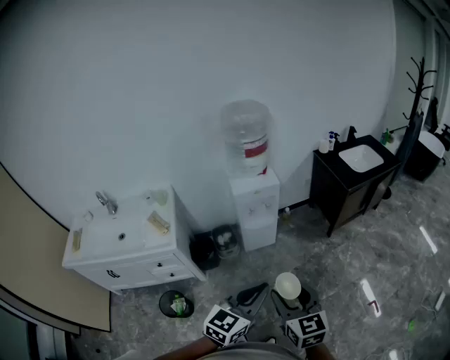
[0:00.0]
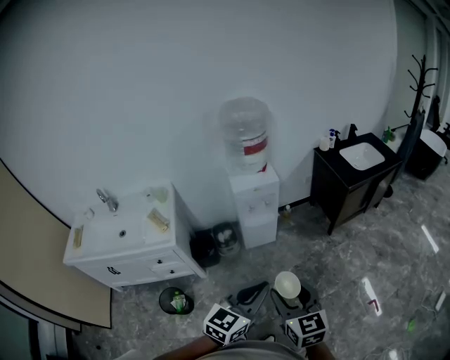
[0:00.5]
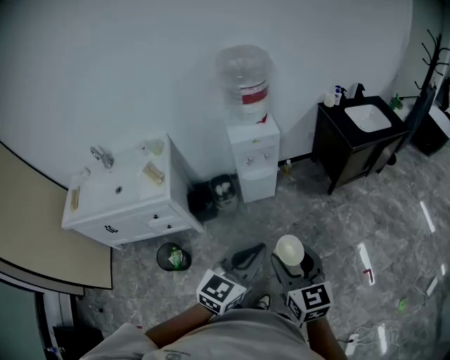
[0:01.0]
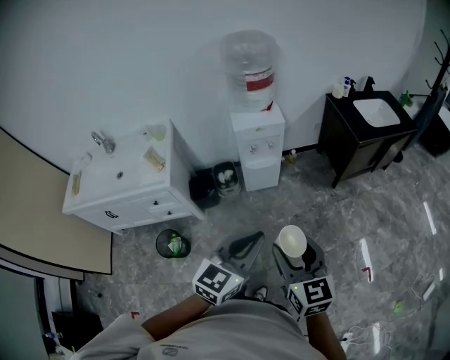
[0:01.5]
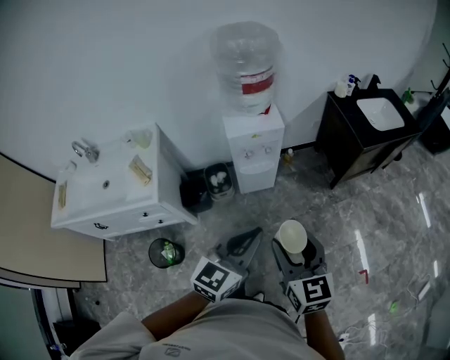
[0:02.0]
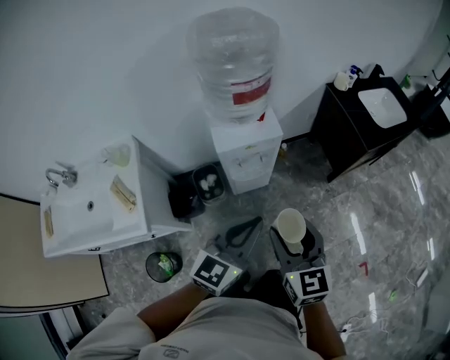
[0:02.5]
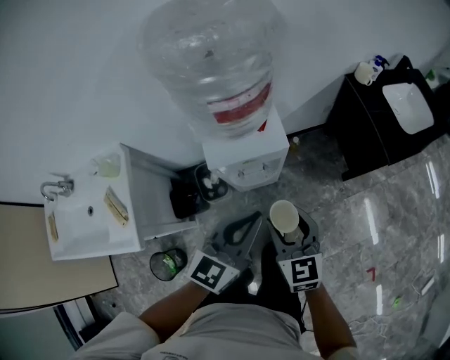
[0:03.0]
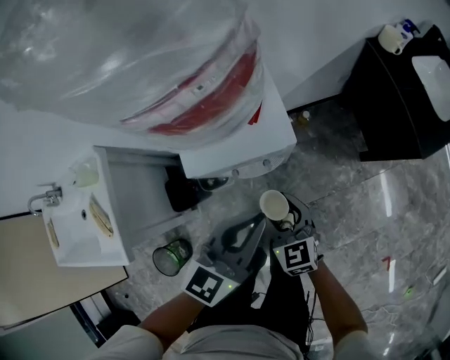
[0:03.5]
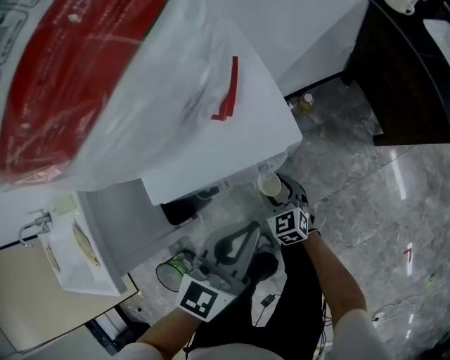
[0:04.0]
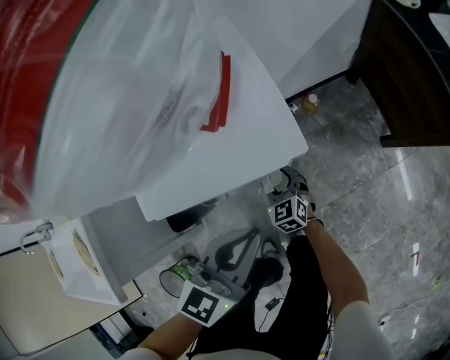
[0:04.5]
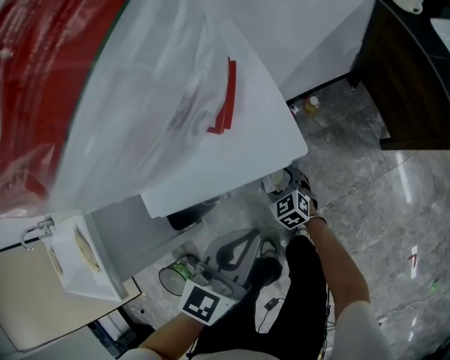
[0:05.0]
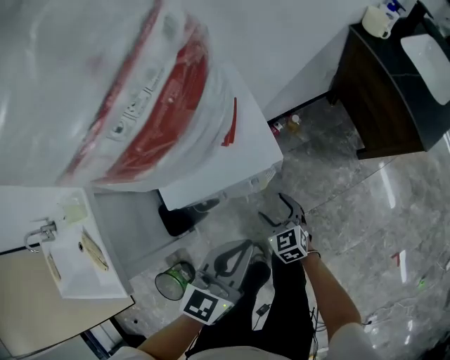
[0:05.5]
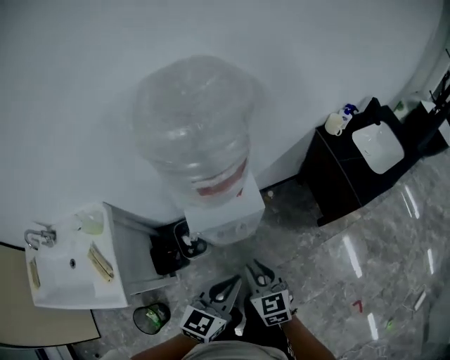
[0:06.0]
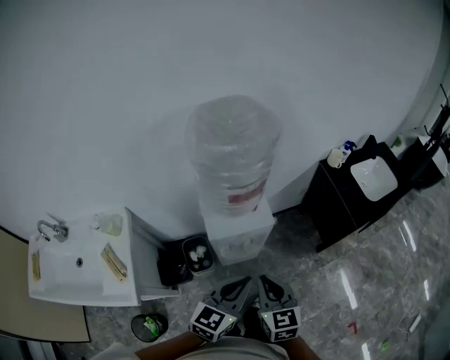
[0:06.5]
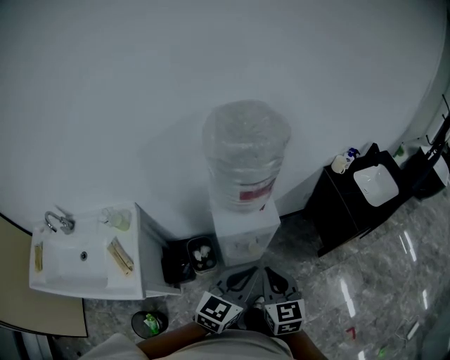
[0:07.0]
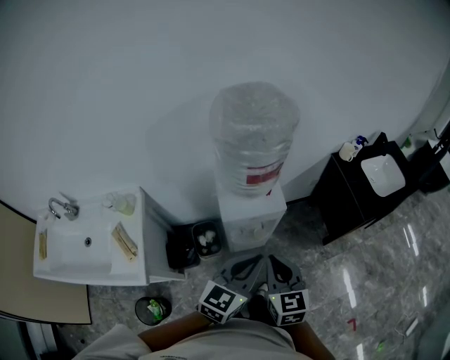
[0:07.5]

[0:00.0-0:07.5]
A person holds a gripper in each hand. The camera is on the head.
0:00.0 to 0:02.0: The two grippers go some 15 cm forward.
0:02.0 to 0:04.0: Both grippers are carried forward, approximately 50 cm. The left gripper goes roughly 30 cm downward; the right gripper moves downward, approximately 60 cm, and swivels roughly 20 degrees.
0:04.0 to 0:05.5: The right gripper travels upward by about 10 cm.
0:05.5 to 0:07.5: The left gripper travels upward by some 30 cm. Meanwhile the right gripper heads upward, covering roughly 50 cm, and closes.

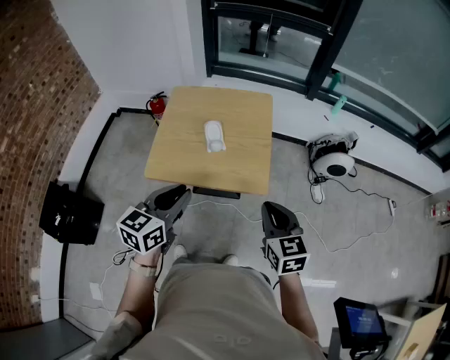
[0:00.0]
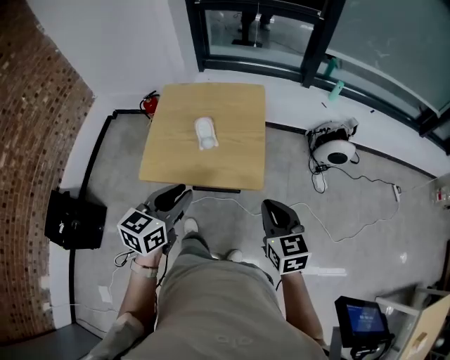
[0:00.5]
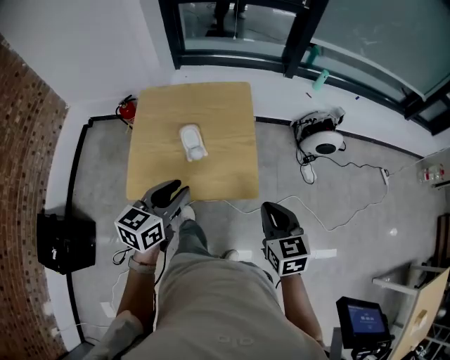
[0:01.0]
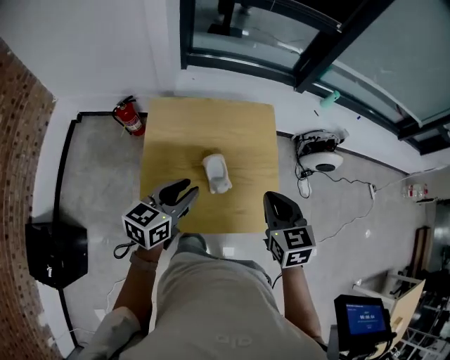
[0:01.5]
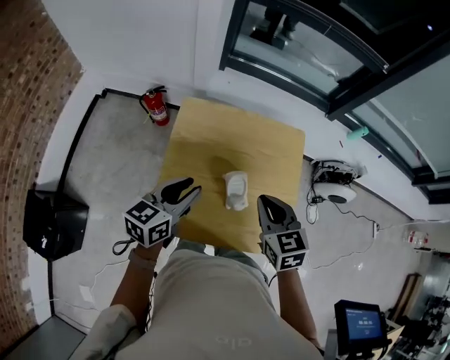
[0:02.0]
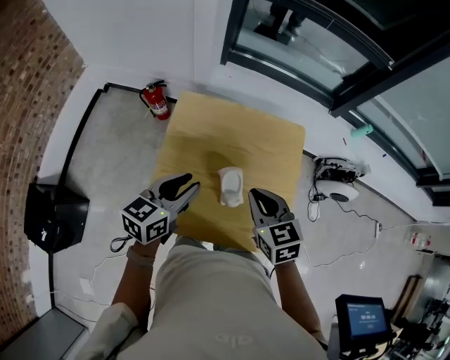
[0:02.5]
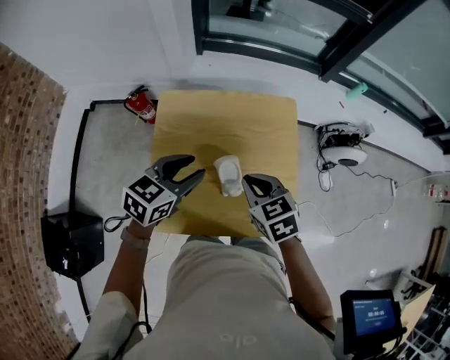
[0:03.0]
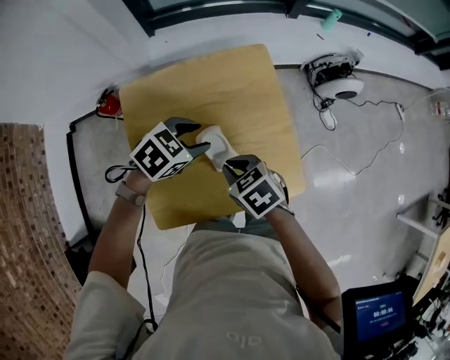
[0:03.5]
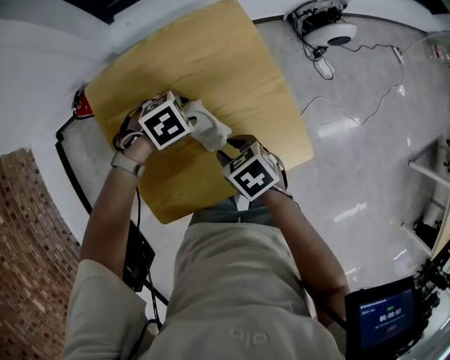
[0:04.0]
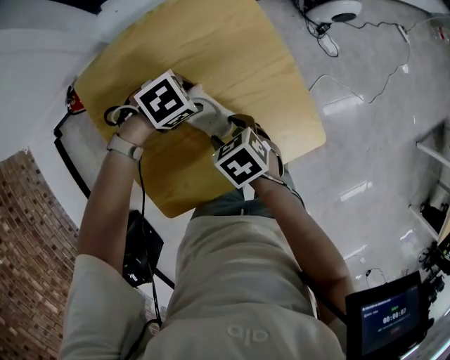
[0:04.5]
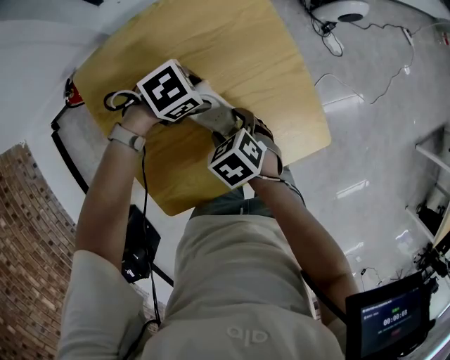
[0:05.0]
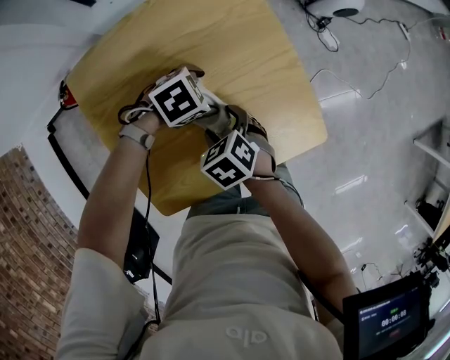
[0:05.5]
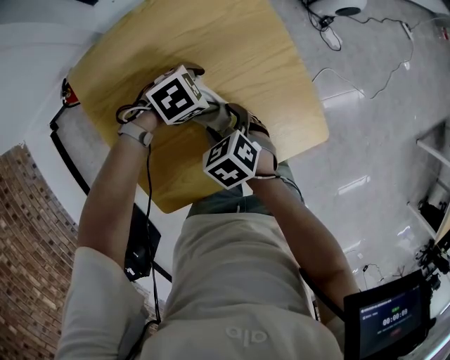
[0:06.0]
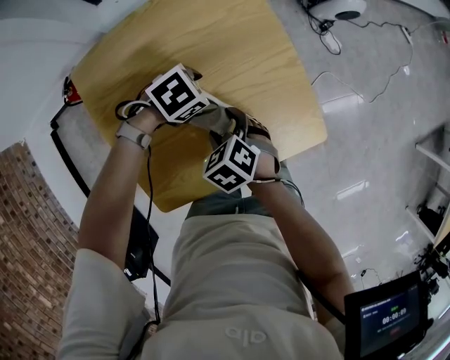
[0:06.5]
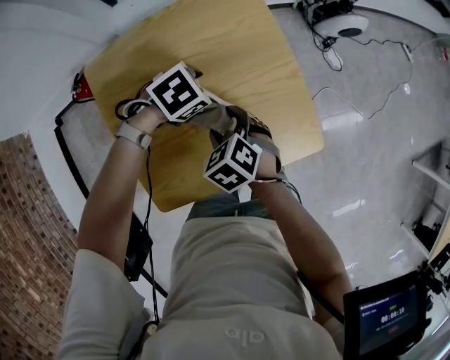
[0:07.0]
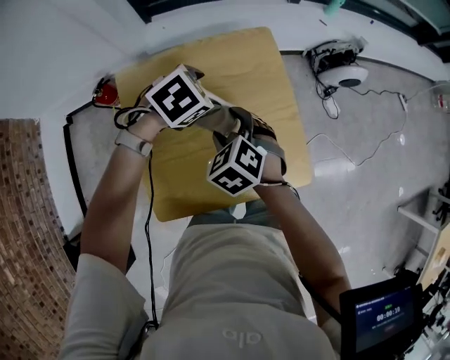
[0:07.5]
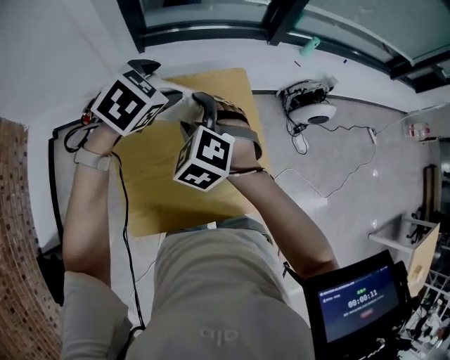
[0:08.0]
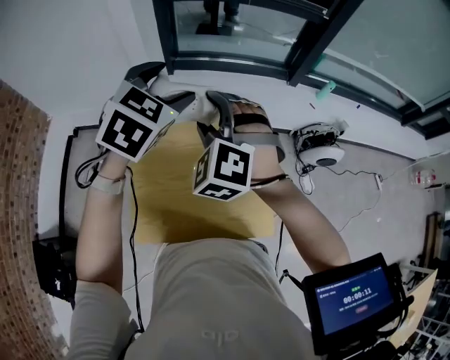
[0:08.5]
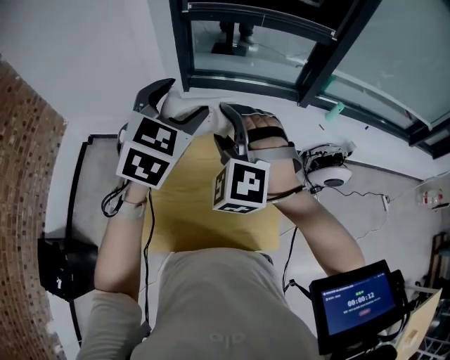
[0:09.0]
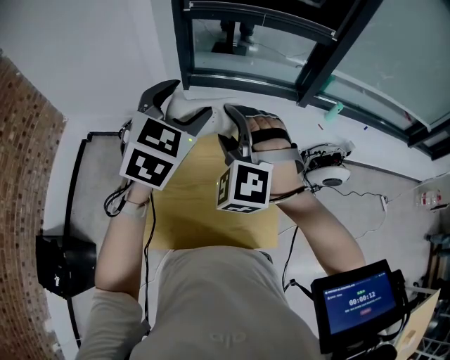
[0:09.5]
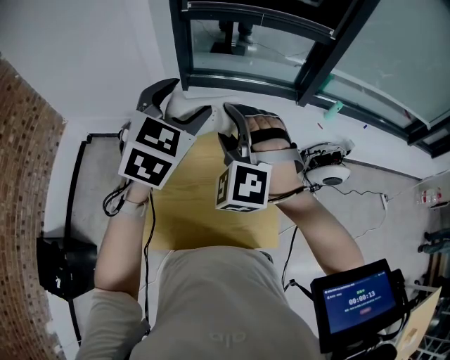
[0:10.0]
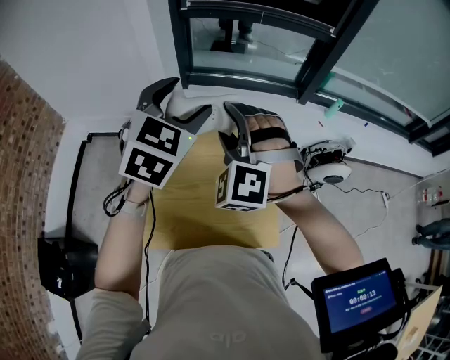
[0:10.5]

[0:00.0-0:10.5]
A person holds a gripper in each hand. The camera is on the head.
0:00.0 to 0:02.0: The two grippers go roughly 40 cm forward and to the left.
0:02.0 to 0:04.0: Both grippers travel together downward, approximately 20 cm. The right gripper rotates some 40 degrees, while the left gripper tilts its fingers some 50 degrees downward.
0:04.0 to 0:06.5: The grippers both shift downward by approximately 5 cm. The right gripper swivels approximately 20 degrees, and opens up.
0:06.5 to 0:08.5: The two grippers go about 40 cm upward. The left gripper tilts its fingers approximately 30 degrees upward. The right gripper rolls counterclockwise, seen from behind, by some 50 degrees.
0:08.5 to 0:10.5: The left gripper shifts by about 5 cm, while the right gripper ends up some 5 cm from where it was.

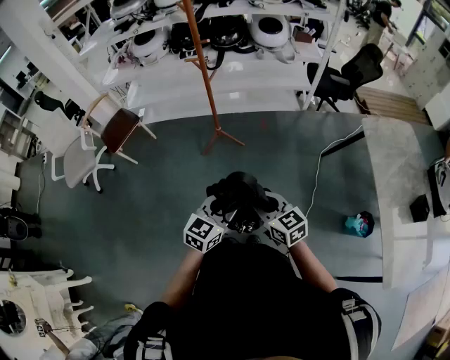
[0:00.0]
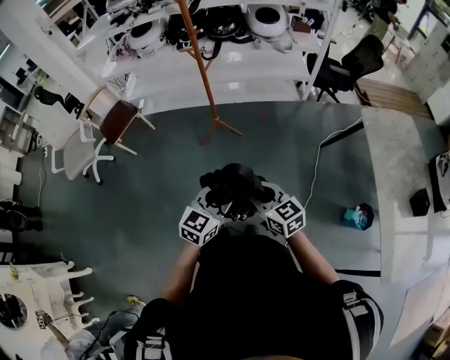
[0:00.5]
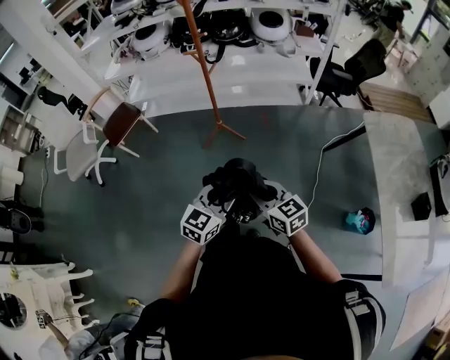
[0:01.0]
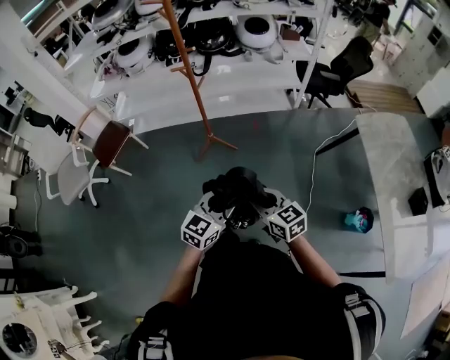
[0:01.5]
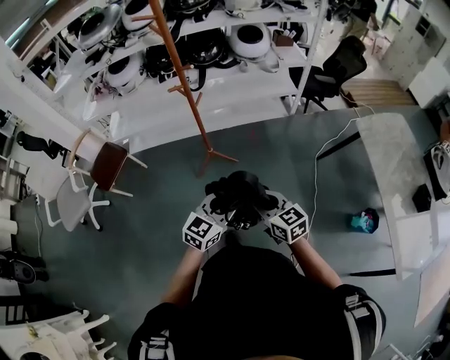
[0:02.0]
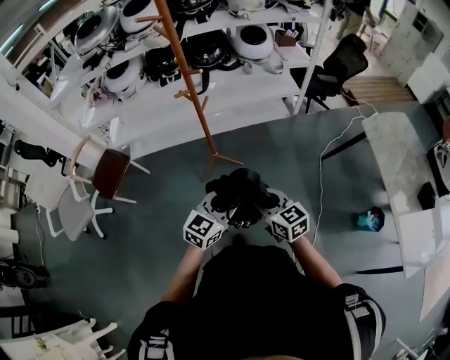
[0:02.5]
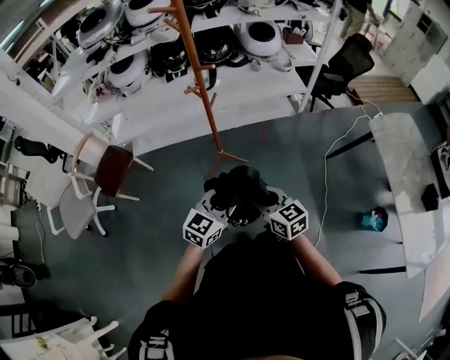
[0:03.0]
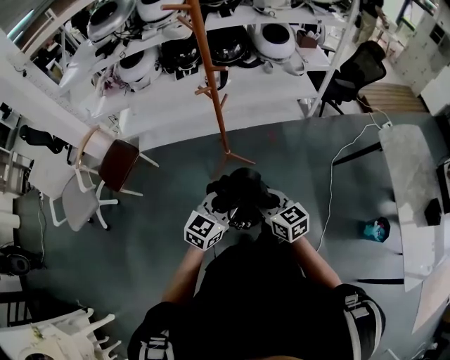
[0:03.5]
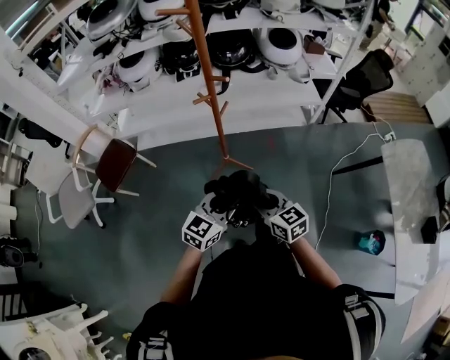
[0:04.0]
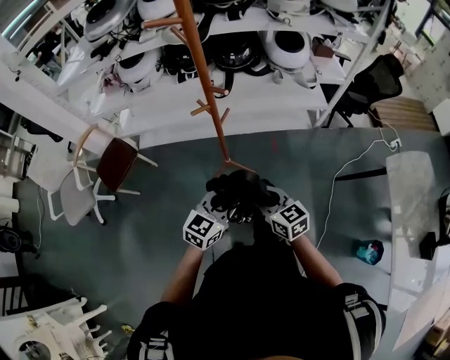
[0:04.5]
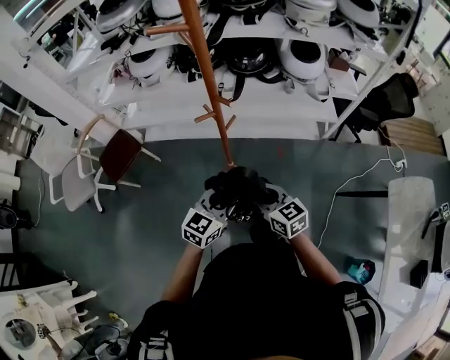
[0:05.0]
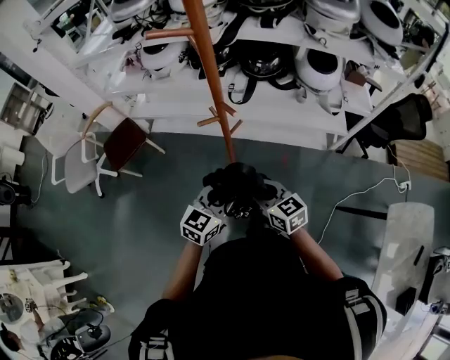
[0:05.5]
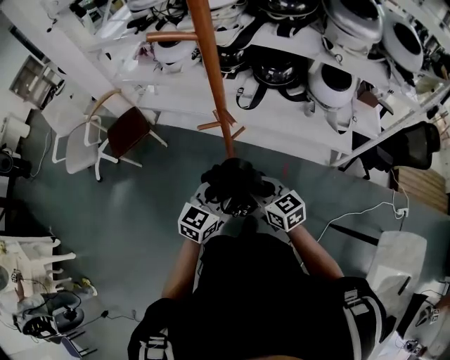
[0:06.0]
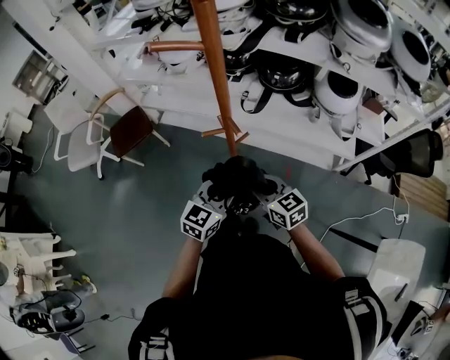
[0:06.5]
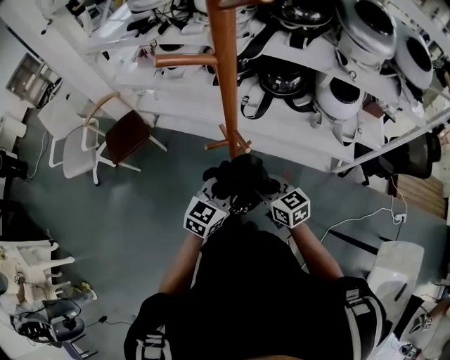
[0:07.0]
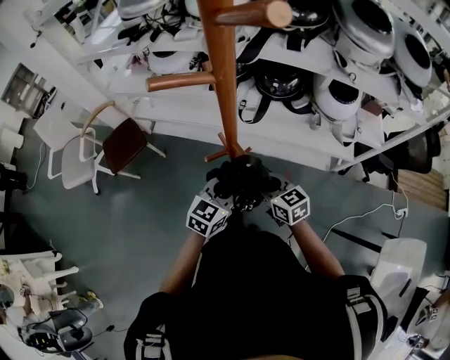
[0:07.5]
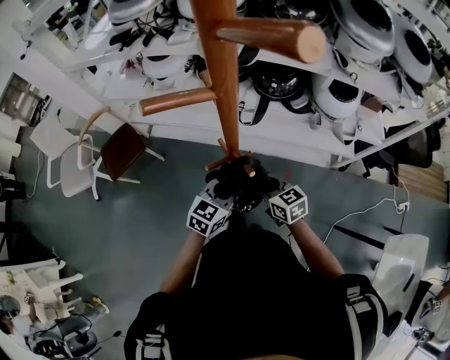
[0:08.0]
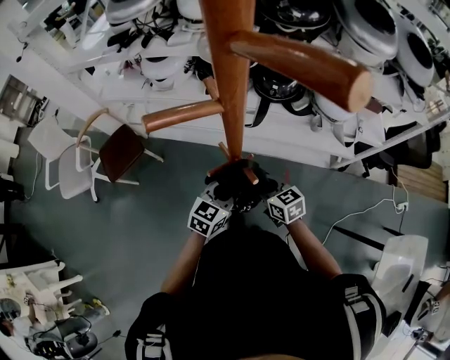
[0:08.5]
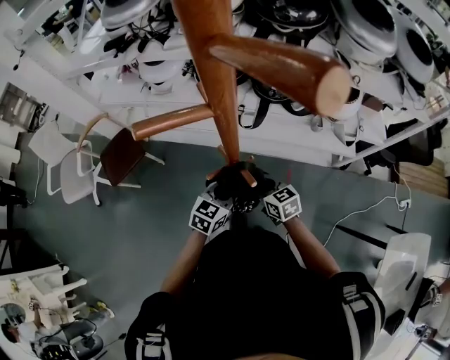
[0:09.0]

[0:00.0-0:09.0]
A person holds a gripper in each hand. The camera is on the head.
0:00.0 to 0:02.0: Both grippers move forward, about 20 cm.
0:02.0 to 0:04.5: Both grippers move forward, about 30 cm.
0:04.5 to 0:07.0: The grippers both shift forward by some 30 cm. The right gripper changes its angle by roughly 20 degrees. The left gripper changes its angle by some 20 degrees.
0:07.0 to 0:09.0: Both grippers move forward and downward, approximately 15 cm.
